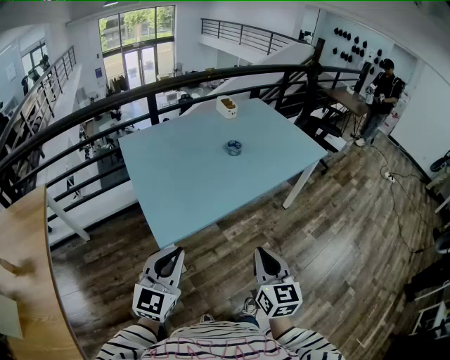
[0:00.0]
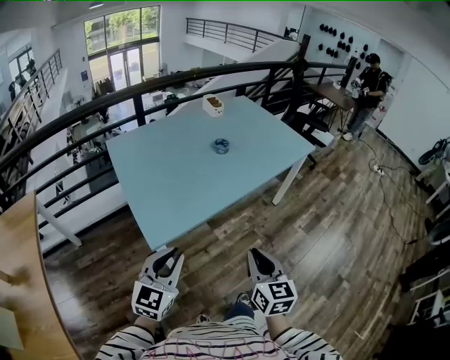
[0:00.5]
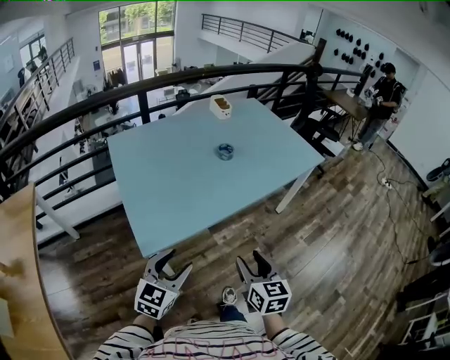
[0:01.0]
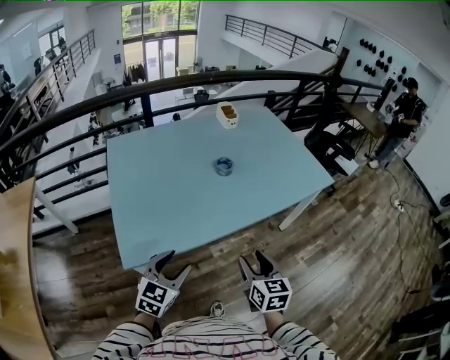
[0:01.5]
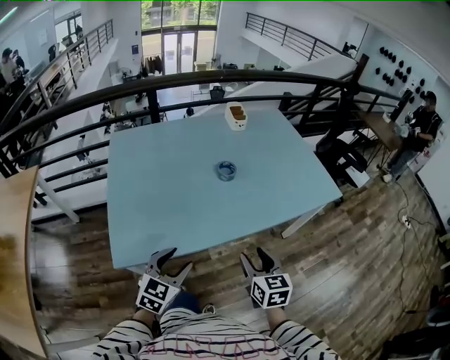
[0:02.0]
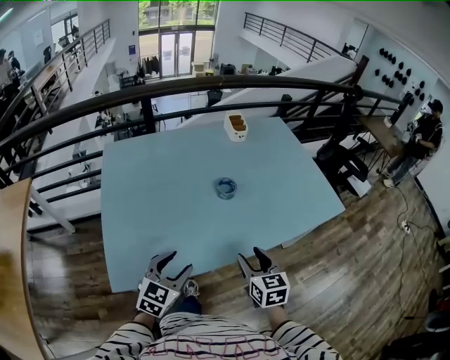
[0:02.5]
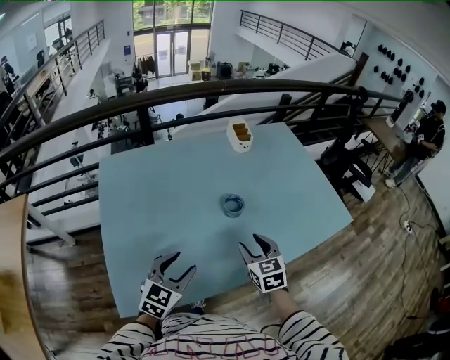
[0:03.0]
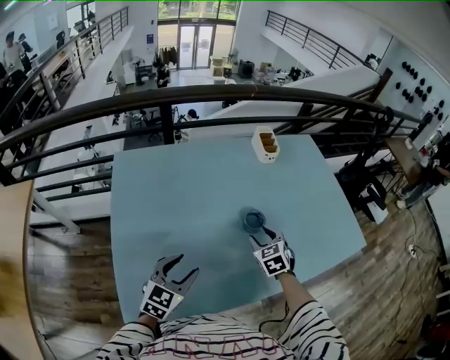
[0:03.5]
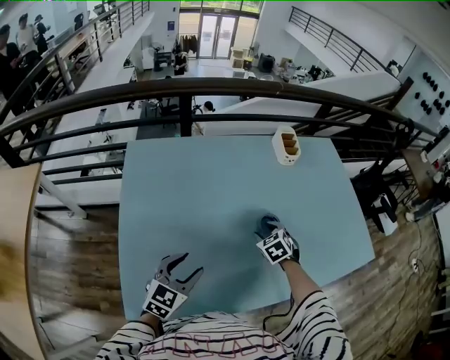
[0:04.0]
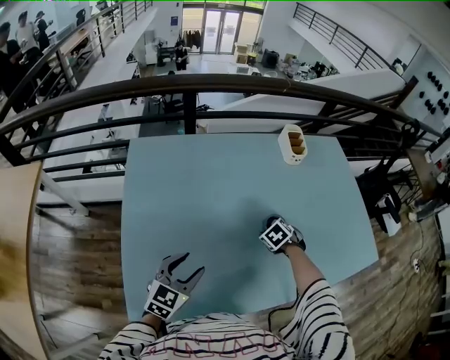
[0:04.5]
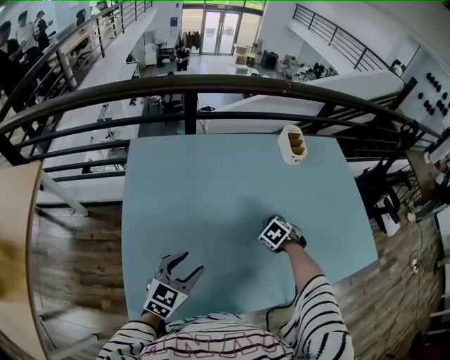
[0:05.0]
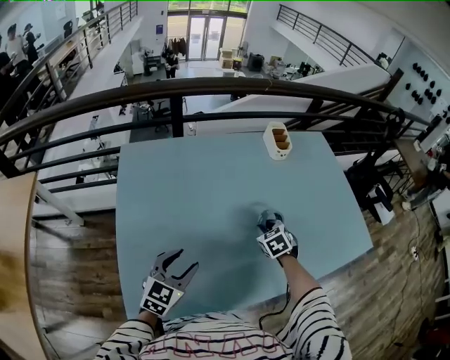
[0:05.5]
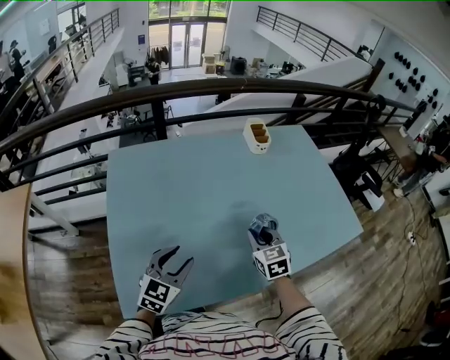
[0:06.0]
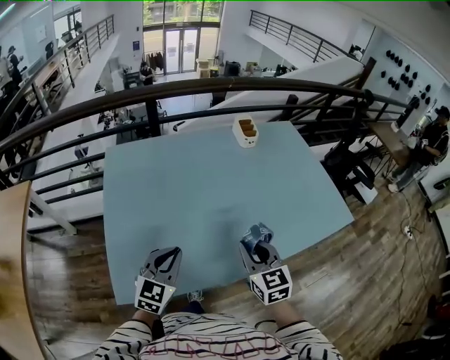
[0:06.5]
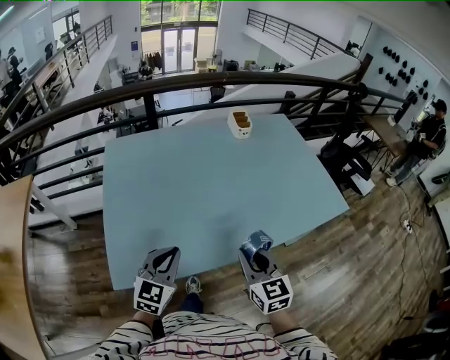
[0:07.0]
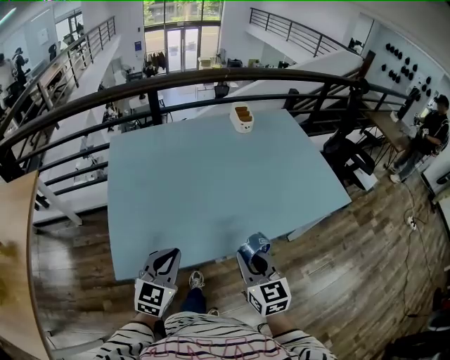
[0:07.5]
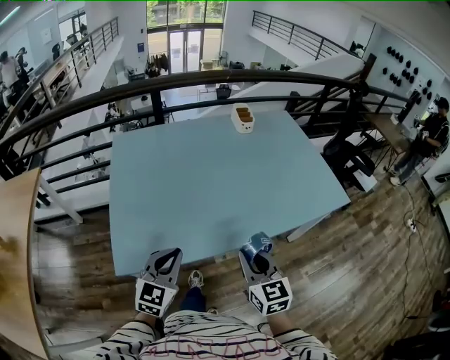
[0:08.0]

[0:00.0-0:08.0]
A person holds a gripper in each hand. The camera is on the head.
0:00.0 to 0:02.0: The right gripper moves forward and to the right, roughly 30 cm, rotates about 20 degrees, and opens; the left gripper moves forward, to the right and downward, roughly 30 cm, turns by some 20 degrees, and opens its fingers.
0:02.0 to 0:04.0: The right gripper travels forward by roughly 40 cm, and angles its fingers downward, by approximately 30 degrees, while the left gripper goes some 25 cm forward and to the left.
0:04.0 to 0:06.0: The right gripper changes place by about 15 cm, rotates some 30 degrees, and closes.
0:06.0 to 0:08.0: The two grippers go approximately 20 cm backward. The left gripper closes its fingers.

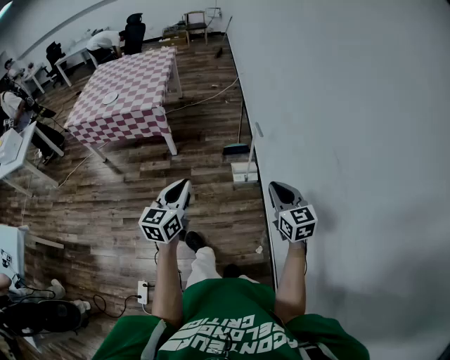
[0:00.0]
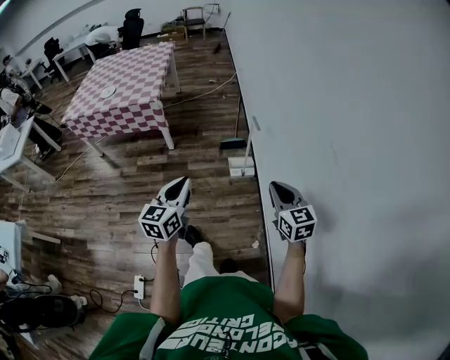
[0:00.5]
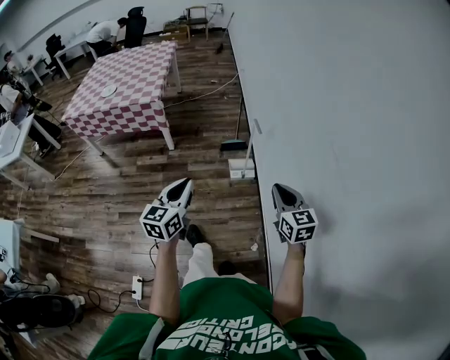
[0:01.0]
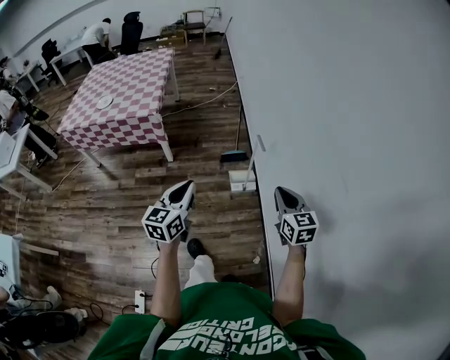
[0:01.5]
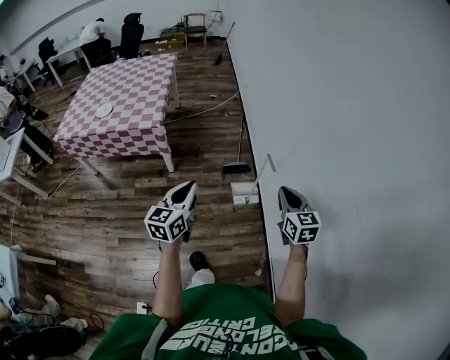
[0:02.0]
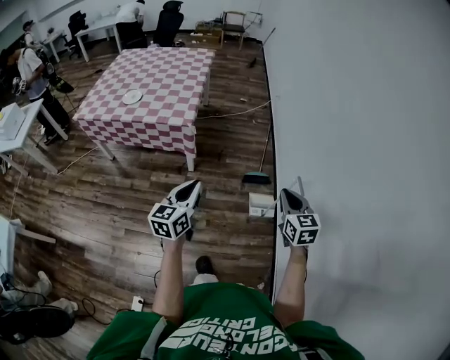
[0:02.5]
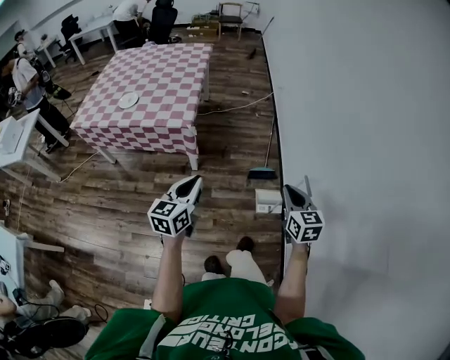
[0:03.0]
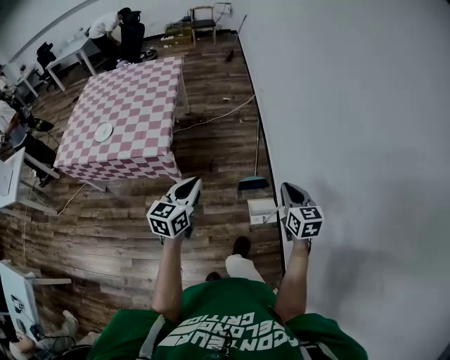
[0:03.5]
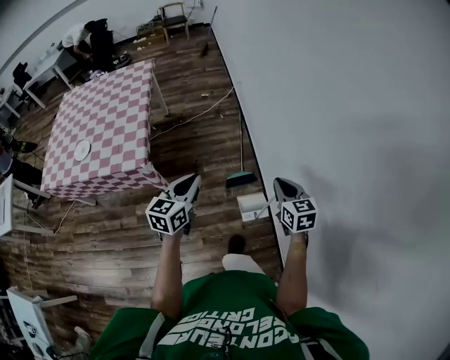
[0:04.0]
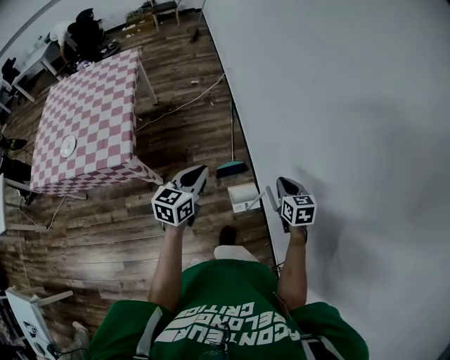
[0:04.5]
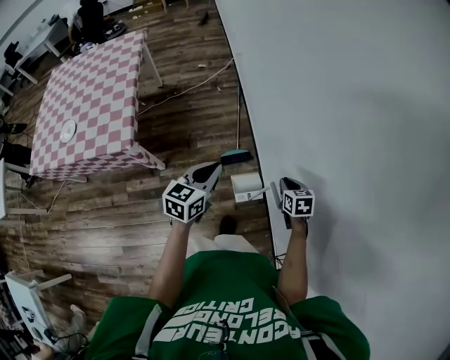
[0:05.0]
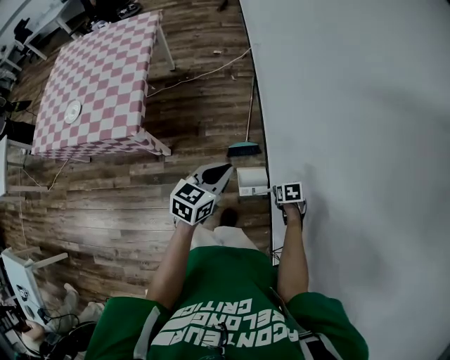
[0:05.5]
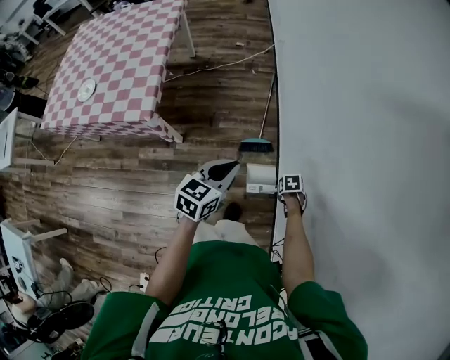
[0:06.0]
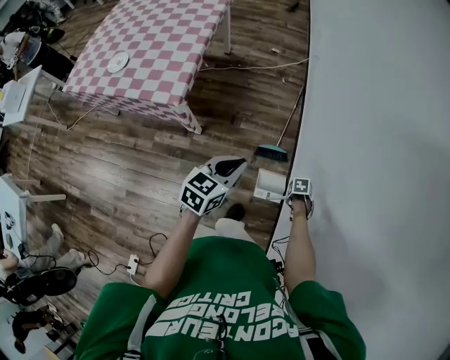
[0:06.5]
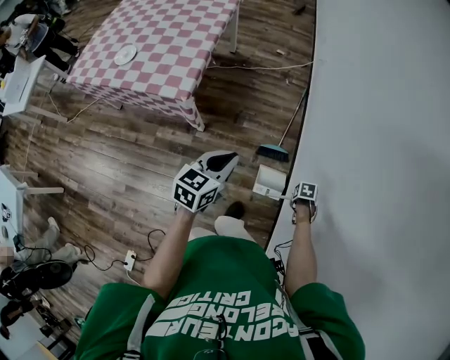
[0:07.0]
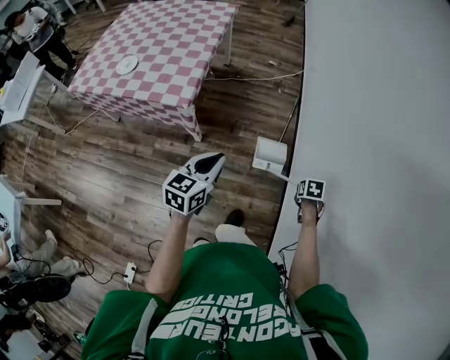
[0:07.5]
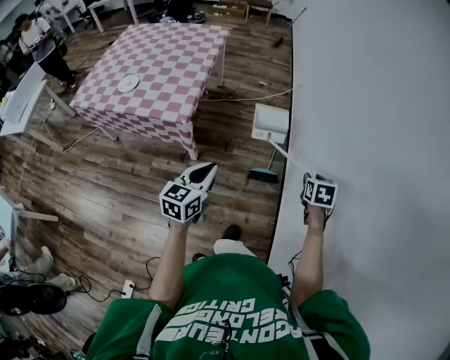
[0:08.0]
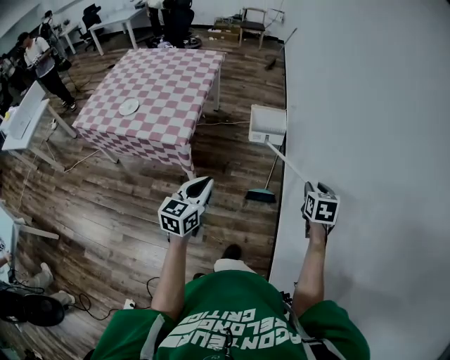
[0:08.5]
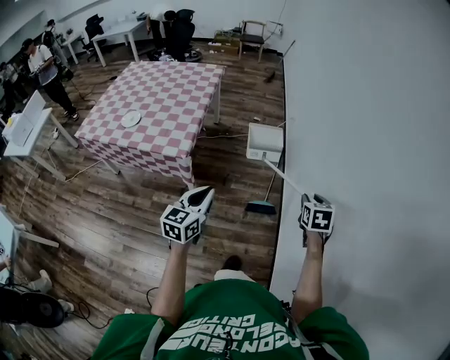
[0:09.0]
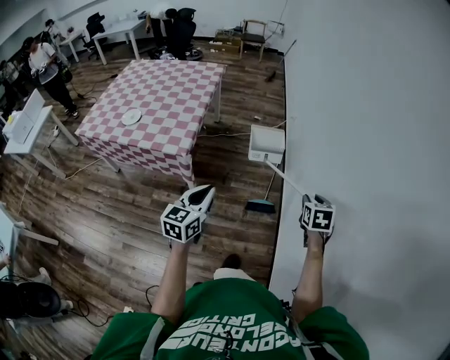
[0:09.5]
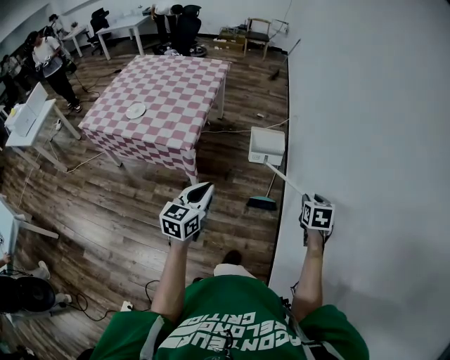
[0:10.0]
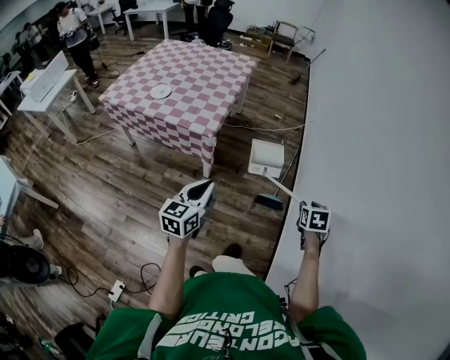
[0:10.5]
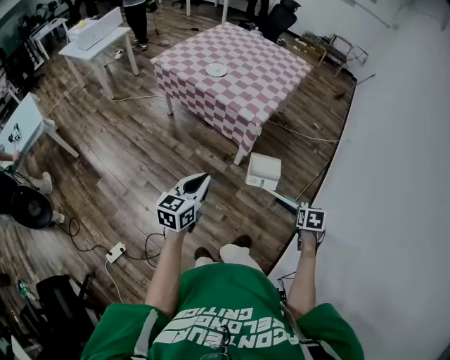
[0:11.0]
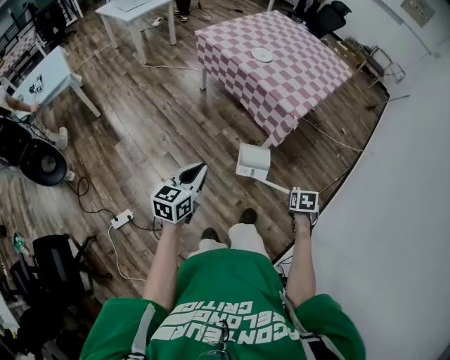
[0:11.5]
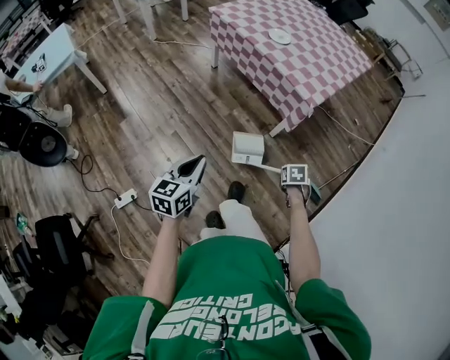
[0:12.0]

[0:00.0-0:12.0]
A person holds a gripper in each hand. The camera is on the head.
0:00.0 to 0:02.0: Both grippers travel together forward, about 20 cm.
0:02.0 to 0:04.0: Both grippers move forward, roughly 35 cm.
0:04.0 to 0:06.0: The right gripper moves downward, about 35 cm, points its fingers about 60 degrees further downward, and opens, while the left gripper shifts by approximately 15 cm.
0:06.0 to 0:08.0: The right gripper shifts roughly 30 cm upward, angles its fingers upward, by approximately 30 degrees, and closes up. Meanwhile the left gripper moves about 20 cm, and rotates some 20 degrees.
0:08.0 to 0:10.0: The right gripper travels upward by approximately 5 cm, while the left gripper shifts by roughly 5 cm.
0:10.0 to 0:12.0: The two grippers travel together, about 40 cm. The right gripper rotates roughly 50 degrees. Meanwhile the left gripper rotates about 40 degrees.

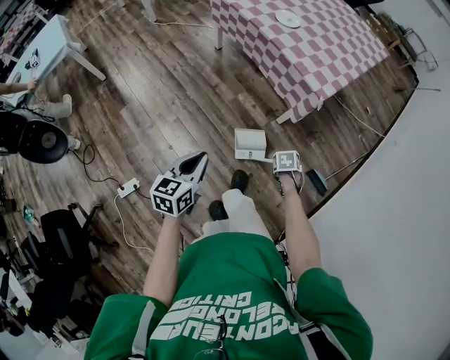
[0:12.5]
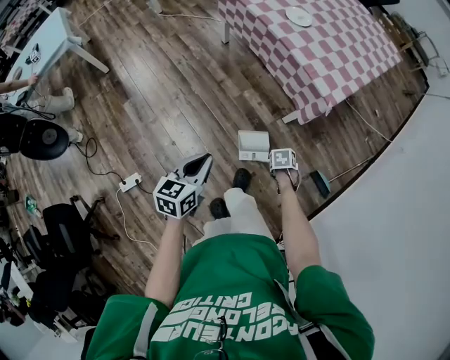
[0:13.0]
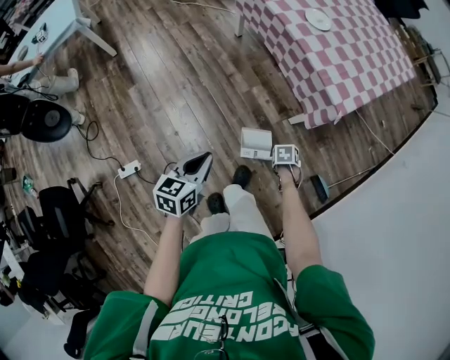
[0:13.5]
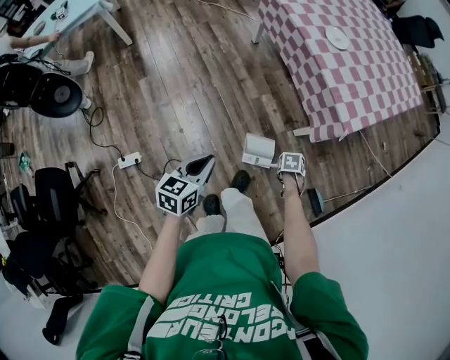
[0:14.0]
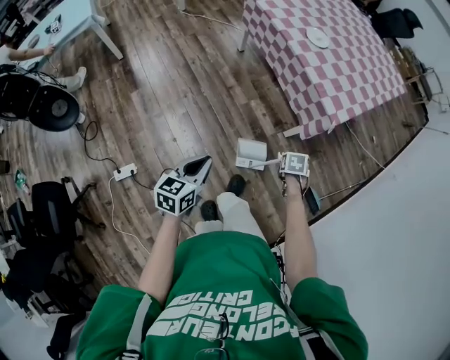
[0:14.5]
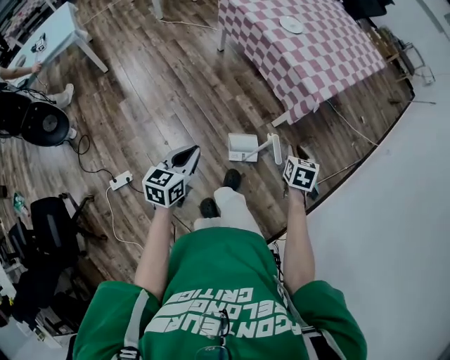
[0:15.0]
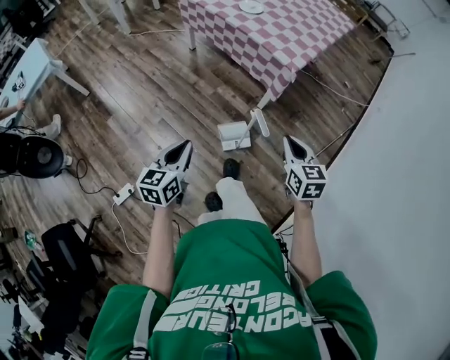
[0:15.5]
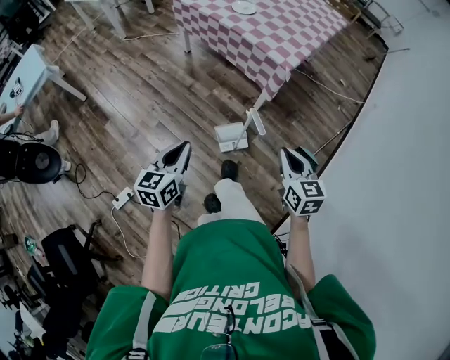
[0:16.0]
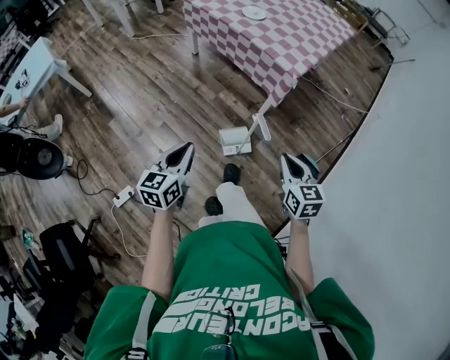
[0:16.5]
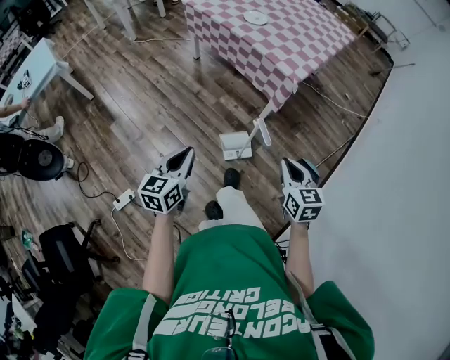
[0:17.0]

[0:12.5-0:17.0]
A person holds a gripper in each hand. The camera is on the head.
0:12.5 to 0:14.5: The right gripper ends up about 10 cm from where it was.
0:14.5 to 0:17.0: The right gripper shifts some 20 cm upward, points its fingers some 40 degrees further upward, and closes; the left gripper changes place by some 10 cm.

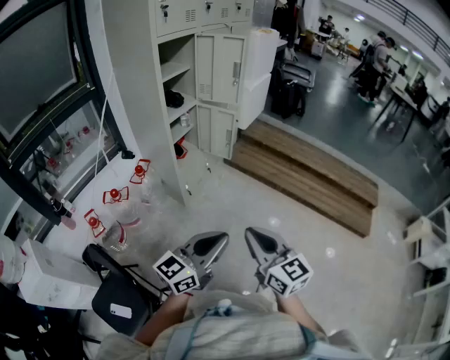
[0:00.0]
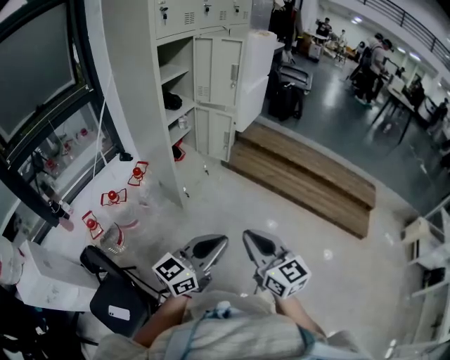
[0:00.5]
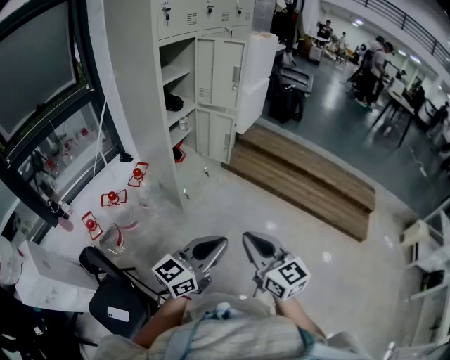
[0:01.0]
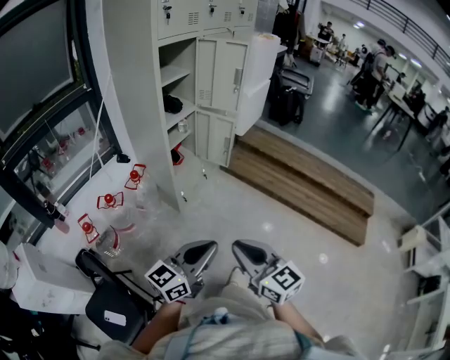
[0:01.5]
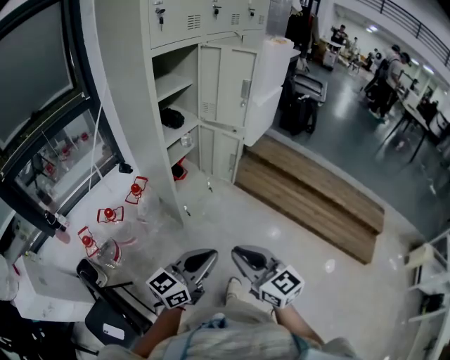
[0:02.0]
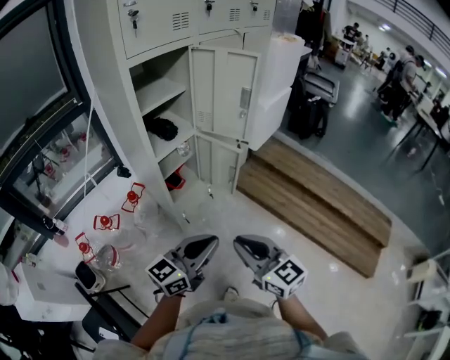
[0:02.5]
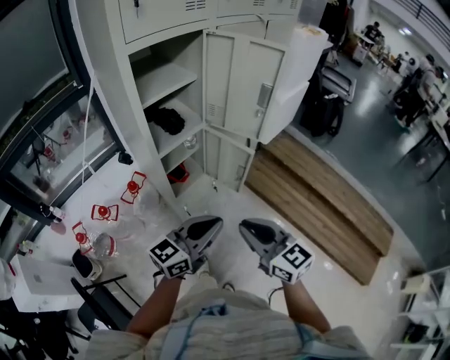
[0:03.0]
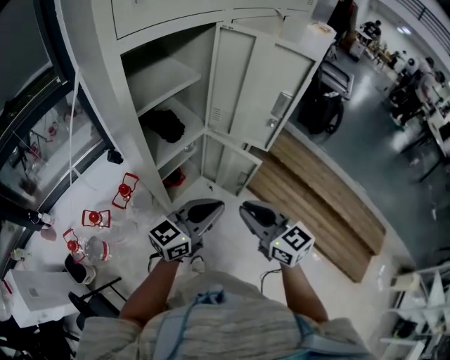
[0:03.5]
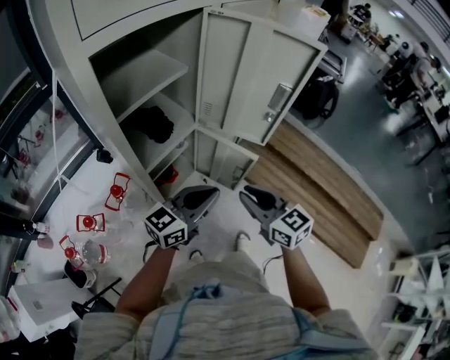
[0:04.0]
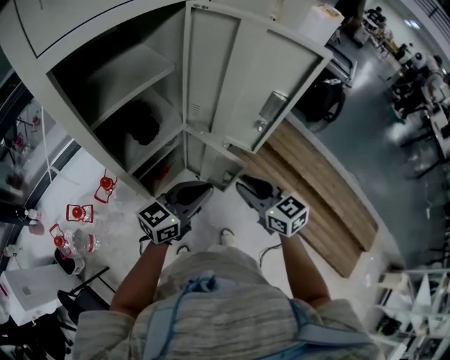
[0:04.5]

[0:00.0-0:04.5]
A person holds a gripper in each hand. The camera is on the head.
0:00.0 to 0:02.0: The two grippers go roughly 15 cm forward.
0:02.0 to 0:04.5: Both grippers are carried forward, approximately 50 cm.
